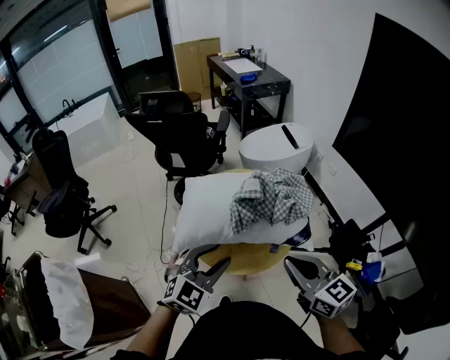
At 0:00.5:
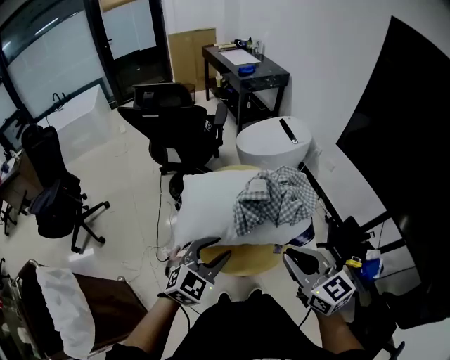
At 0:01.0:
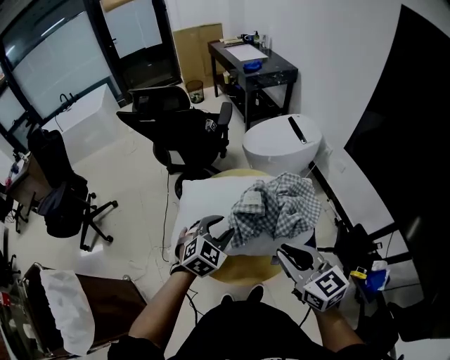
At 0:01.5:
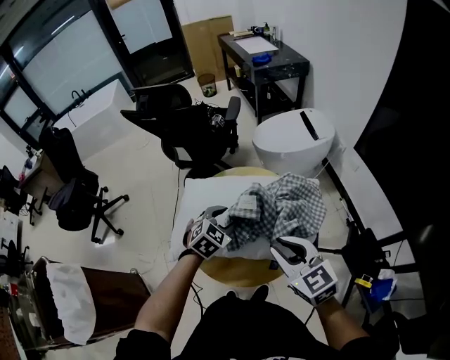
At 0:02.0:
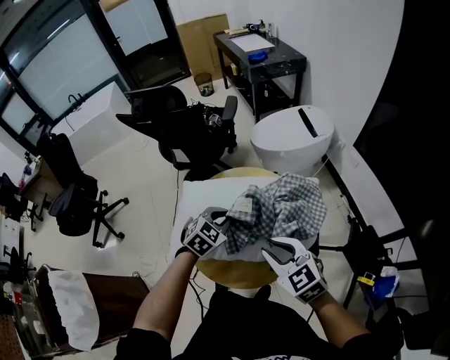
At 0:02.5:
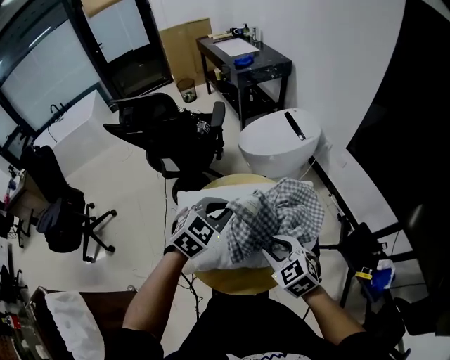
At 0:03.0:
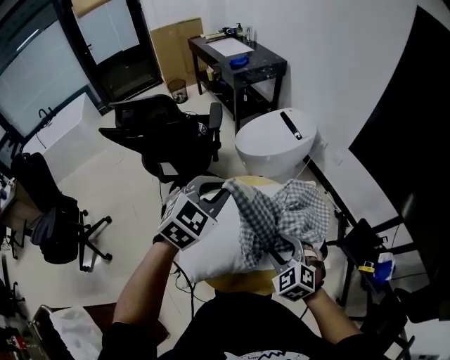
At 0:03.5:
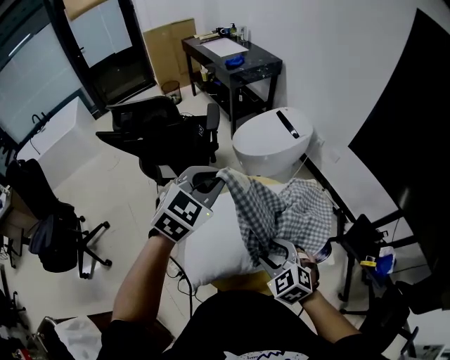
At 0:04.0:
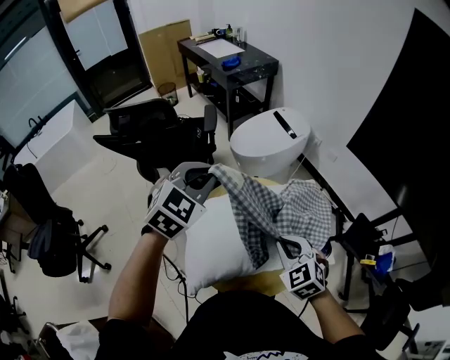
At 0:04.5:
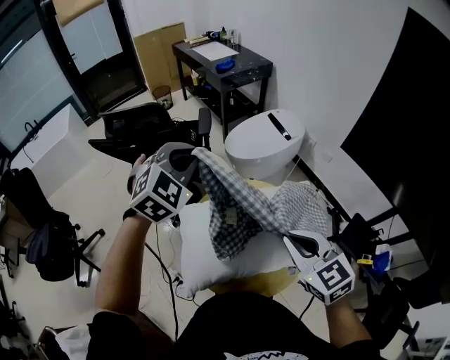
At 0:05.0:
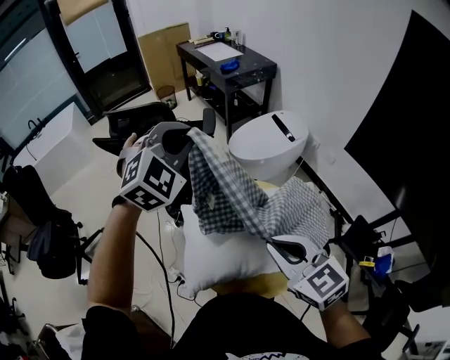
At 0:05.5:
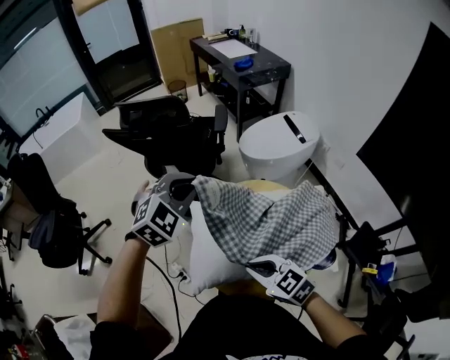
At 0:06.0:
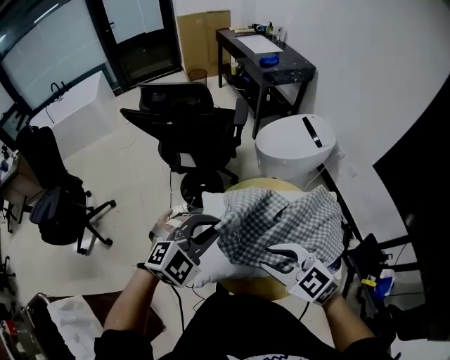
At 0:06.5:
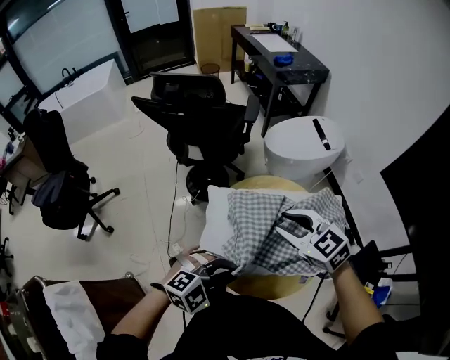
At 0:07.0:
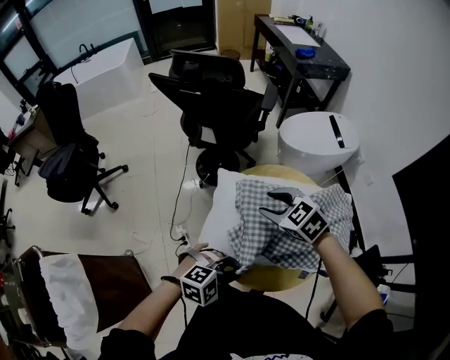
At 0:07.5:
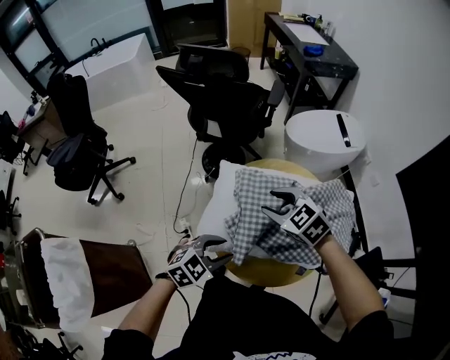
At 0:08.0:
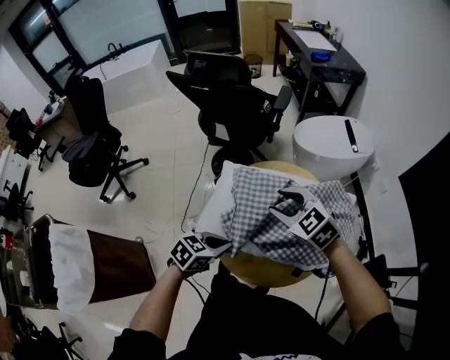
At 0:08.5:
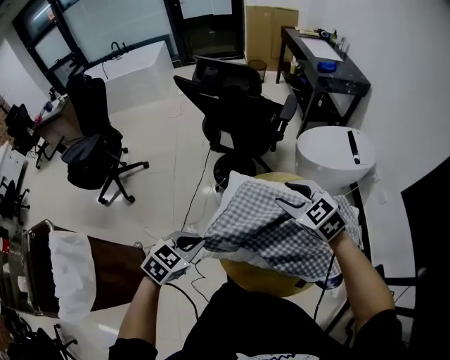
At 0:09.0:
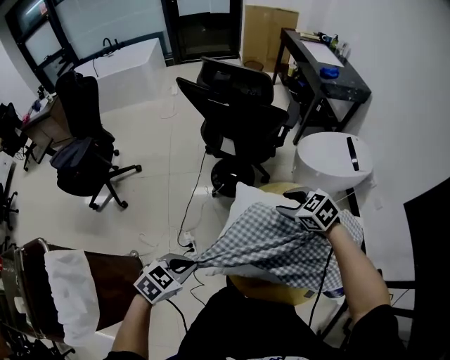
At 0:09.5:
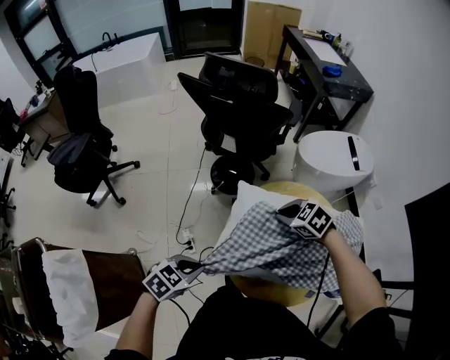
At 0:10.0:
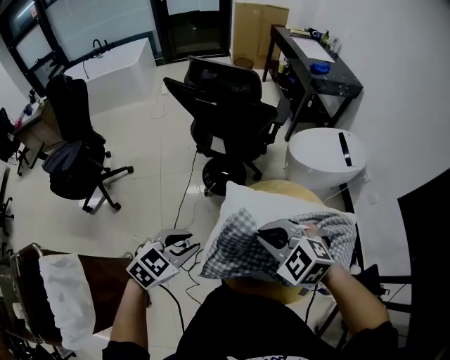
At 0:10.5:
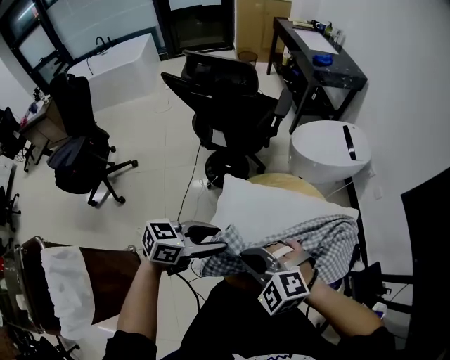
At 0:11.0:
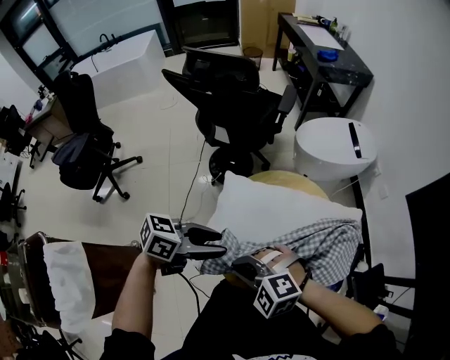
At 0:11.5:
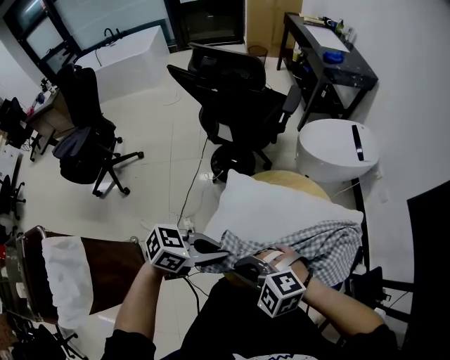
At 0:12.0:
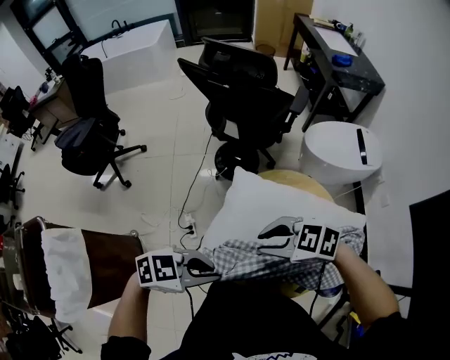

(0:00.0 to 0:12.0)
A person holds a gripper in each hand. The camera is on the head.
0:00.0 - 0:02.0: The left gripper heads forward and downward, covering about 30 cm, turns by approximately 20 degrees, and closes; the right gripper travels forward and downward by approximately 20 cm, rotates approximately 30 degrees, and opens its fingers.
0:02.0 - 0:04.0: The right gripper travels to the left and forward by roughly 10 cm, rotates approximately 30 degrees, and closes its fingers. The left gripper is displaced upward, to the left and forward by some 25 cm, and rotates approximately 20 degrees.
0:04.0 - 0:06.0: The left gripper moves roughly 15 cm, while the right gripper goes up and down, about 15 cm each way, reversing 2 times, rotates approximately 40 degrees, and opens.
0:06.0 - 0:08.0: The right gripper moves about 10 cm, while the left gripper moves downward, approximately 15 cm, twists about 60 degrees counterclockwise, seen from behind, and opens, then closes once more.
0:08.0 - 0:10.0: The left gripper goes up and down, roughly 10 cm each way, reversing 2 times; the right gripper reaches approximately 10 cm downward, then returns, and closes up.
0:10.0 - 0:12.0: The right gripper changes its angle by some 30 degrees, and opens its fingers; the left gripper shifts by about 15 cm, changes its angle by some 30 degrees, and opens and closes again.

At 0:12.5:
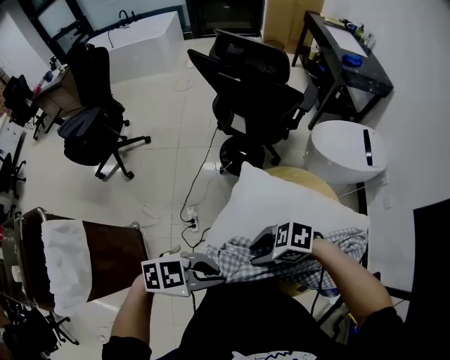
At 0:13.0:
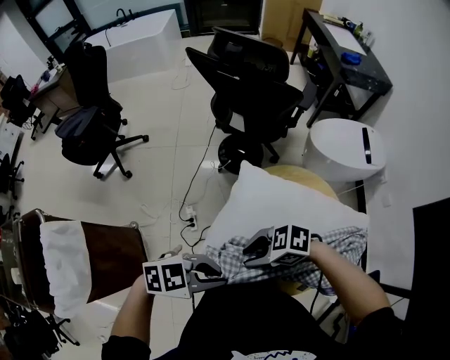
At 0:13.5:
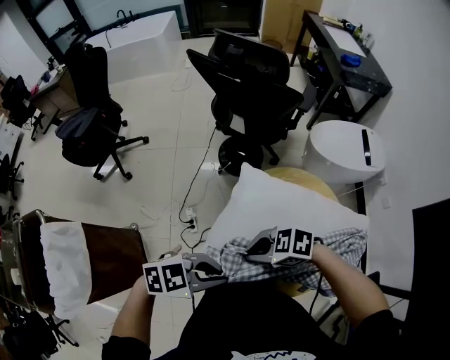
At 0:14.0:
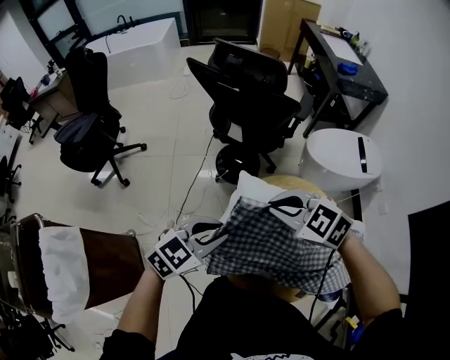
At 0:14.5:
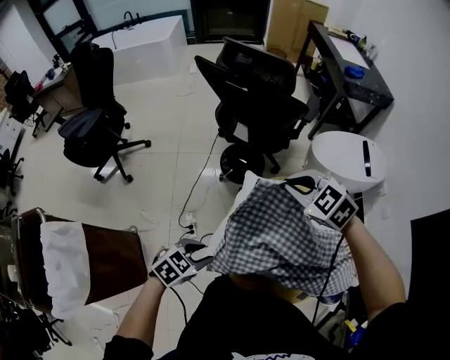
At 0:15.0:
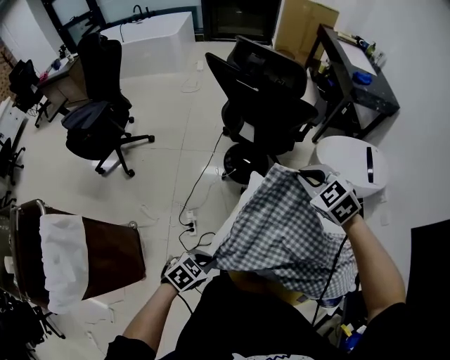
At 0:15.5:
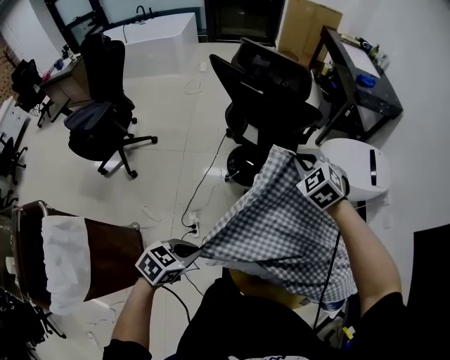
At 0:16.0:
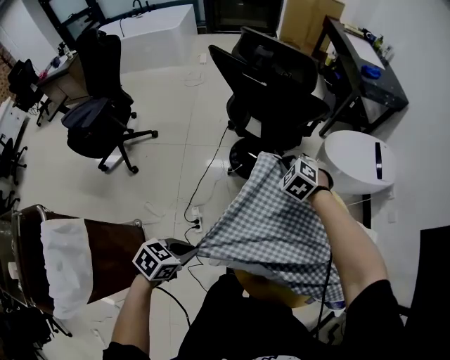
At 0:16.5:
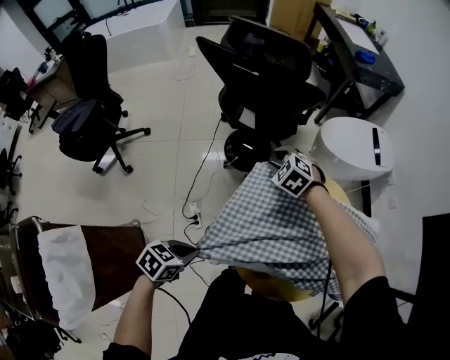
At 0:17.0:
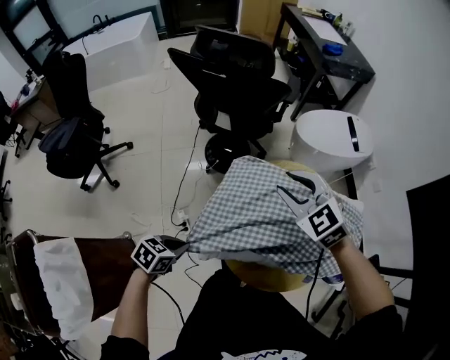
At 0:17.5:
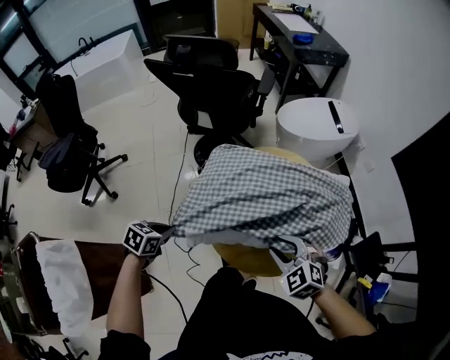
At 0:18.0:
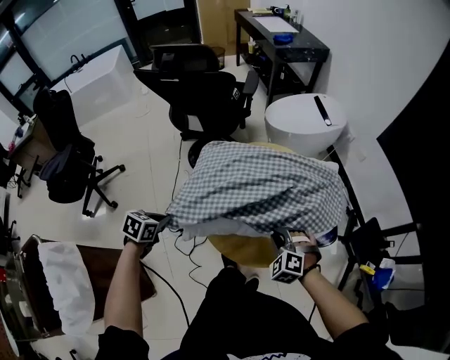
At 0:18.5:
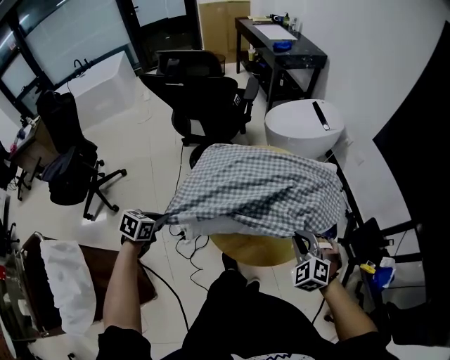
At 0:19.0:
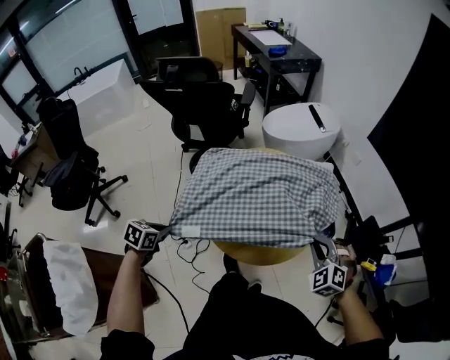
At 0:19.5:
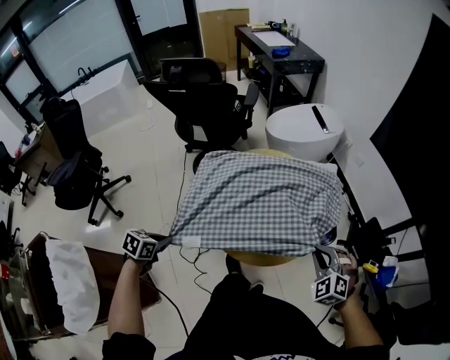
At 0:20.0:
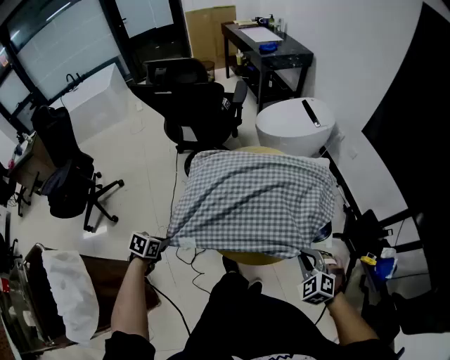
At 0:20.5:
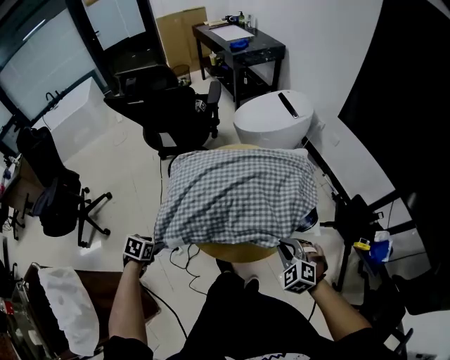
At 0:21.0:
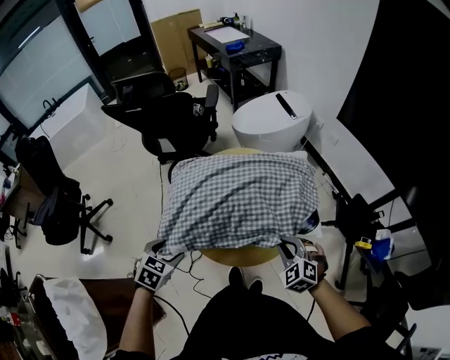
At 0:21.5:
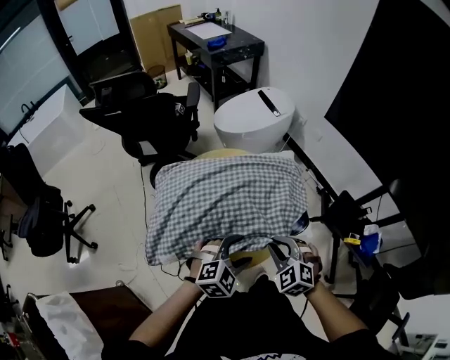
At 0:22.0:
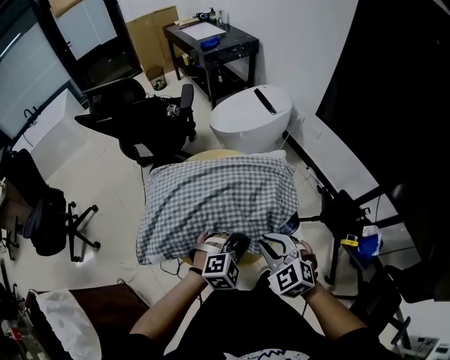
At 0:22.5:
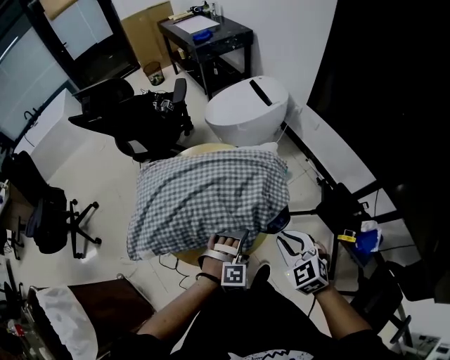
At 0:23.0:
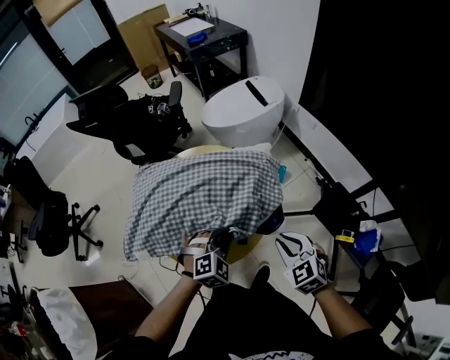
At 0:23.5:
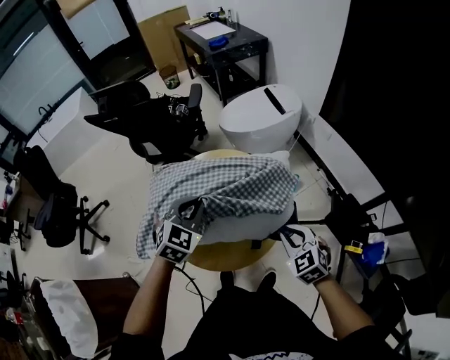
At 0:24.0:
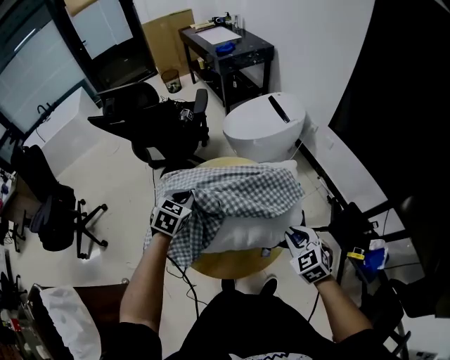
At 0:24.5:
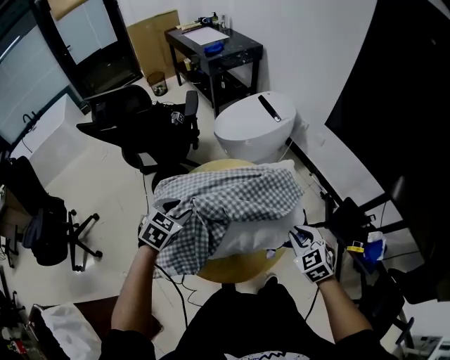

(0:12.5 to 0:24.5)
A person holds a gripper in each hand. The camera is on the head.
0:12.5 - 0:14.5: The left gripper moves downward, about 10 cm, changes its angle by some 30 degrees, and opens its fingers. Meanwhile the right gripper moves approximately 25 cm, rotates about 50 degrees, and closes its fingers.
0:14.5 - 0:16.5: The left gripper heads to the left, covering some 5 cm, and closes its fingers. The right gripper travels downward, forward and to the left by roughly 20 cm, and opens its fingers.
0:16.5 - 0:18.5: The right gripper shifts about 50 cm to the right and backward, rotates approximately 30 degrees, and closes its fingers.
0:18.5 - 0:20.5: The left gripper goes about 10 cm downward, and opens up; the right gripper is displaced backward by some 5 cm.
0:20.5 - 0:22.5: The right gripper goes about 15 cm to the right, upward and forward, and swivels about 20 degrees. Meanwhile the left gripper travels to the right by approximately 50 cm, rotates around the line of its fingers by some 80 degrees, clockwise from behind, and closes, then opens again.
0:22.5 - 0:24.5: The left gripper travels to the left and forward by approximately 35 cm, twists some 50 degrees counterclockwise, seen from behind, and closes; the right gripper is displaced forward by approximately 5 cm.

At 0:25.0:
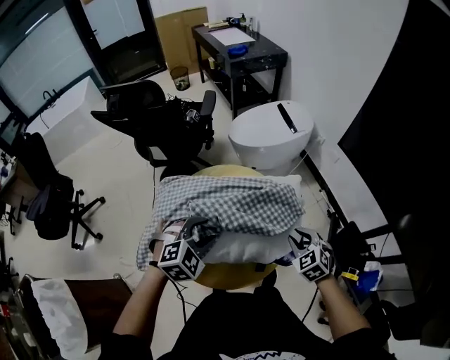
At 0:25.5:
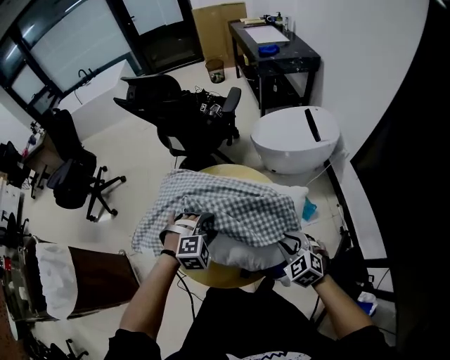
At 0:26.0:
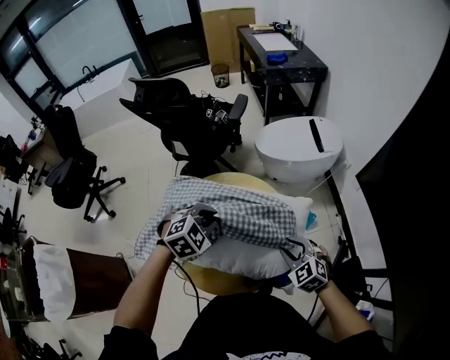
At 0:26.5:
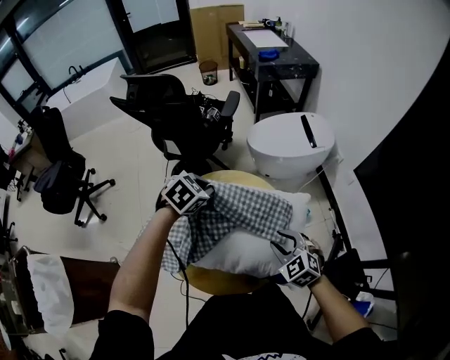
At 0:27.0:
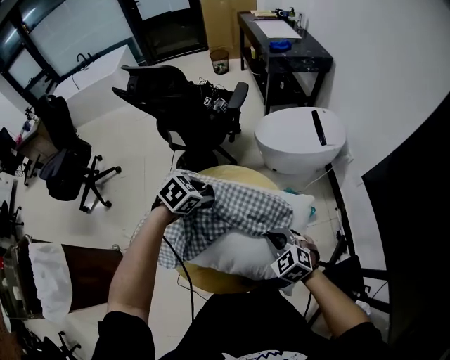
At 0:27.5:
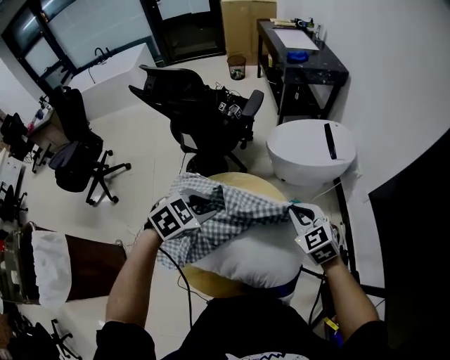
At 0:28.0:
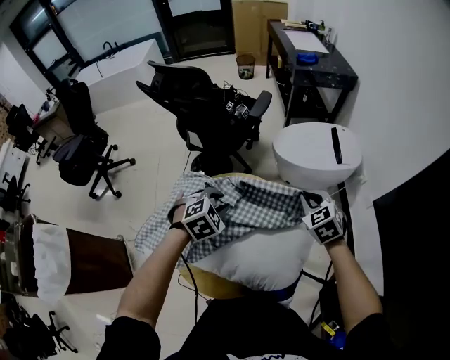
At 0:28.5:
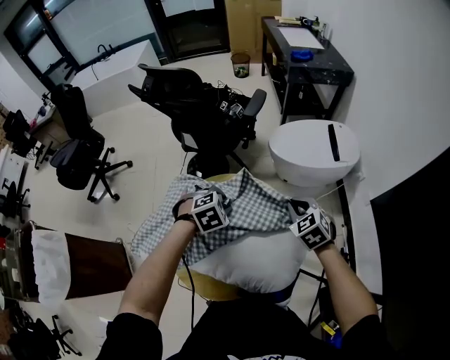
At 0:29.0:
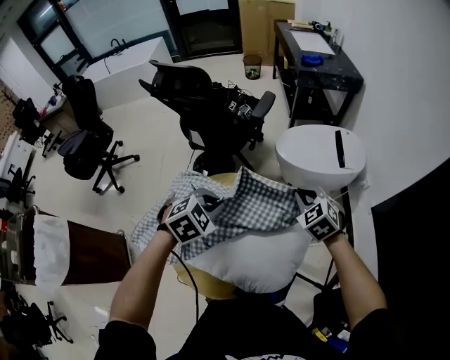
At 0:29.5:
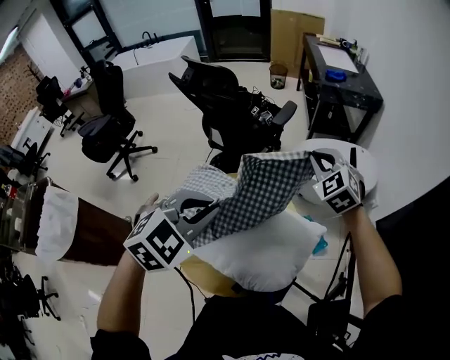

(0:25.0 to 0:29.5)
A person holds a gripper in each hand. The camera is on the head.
0:25.0 - 0:27.0: The right gripper is displaced to the left and forward by about 10 cm, swivels approximately 30 degrees, and closes; the left gripper travels forward by about 15 cm, twists roughly 40 degrees counterclockwise, seen from behind, and closes, then reopens.
0:27.0 - 0:29.5: The left gripper goes up and down, about 25 cm each way, reversing 2 times, swivels some 30 degrees, and closes its fingers, while the right gripper moves forward and upward, some 35 cm, and rotates approximately 20 degrees.
